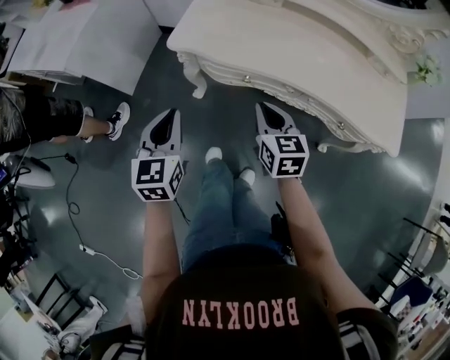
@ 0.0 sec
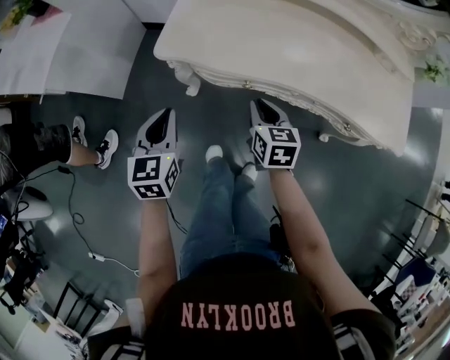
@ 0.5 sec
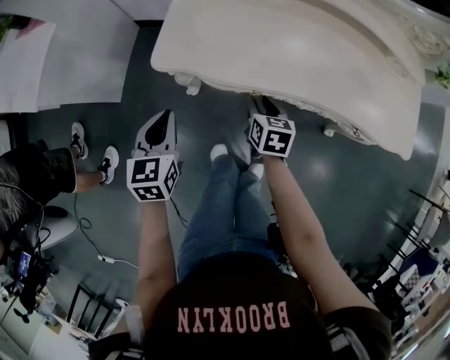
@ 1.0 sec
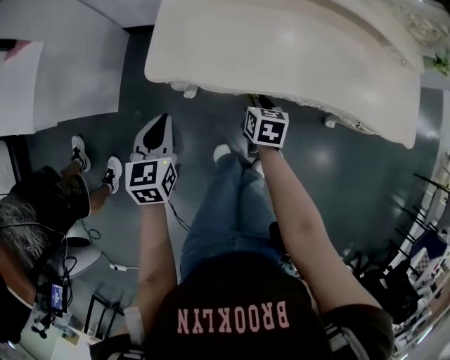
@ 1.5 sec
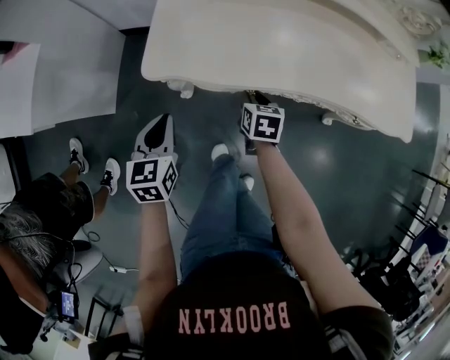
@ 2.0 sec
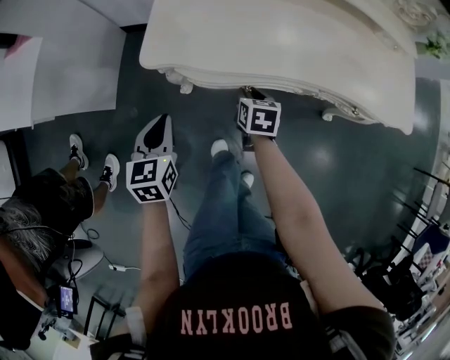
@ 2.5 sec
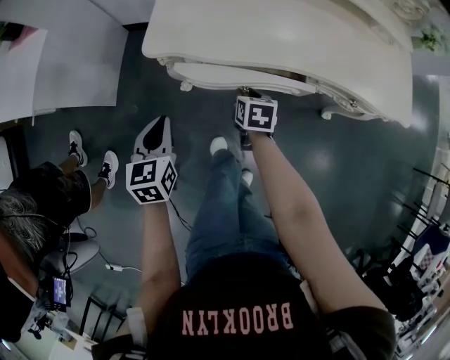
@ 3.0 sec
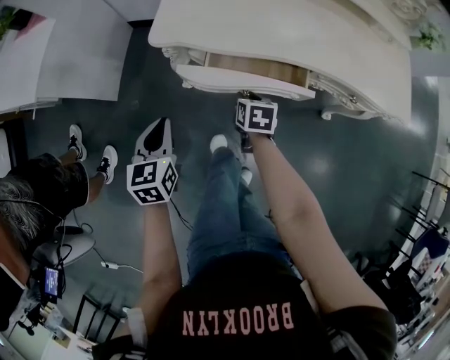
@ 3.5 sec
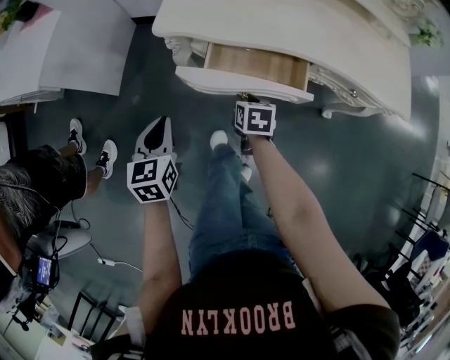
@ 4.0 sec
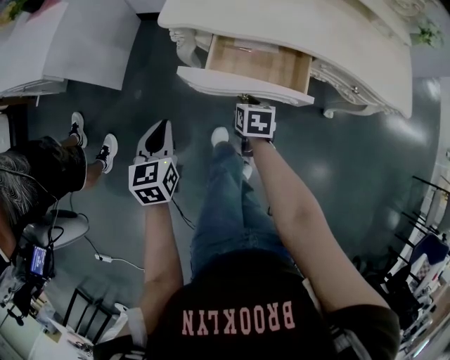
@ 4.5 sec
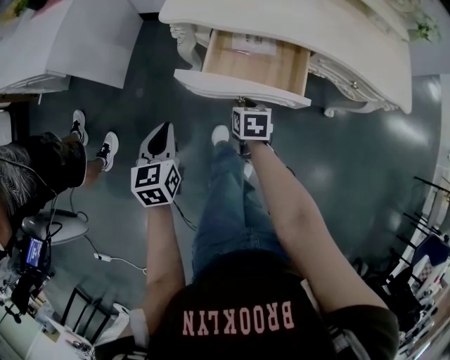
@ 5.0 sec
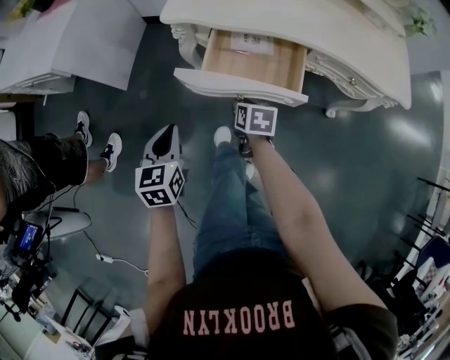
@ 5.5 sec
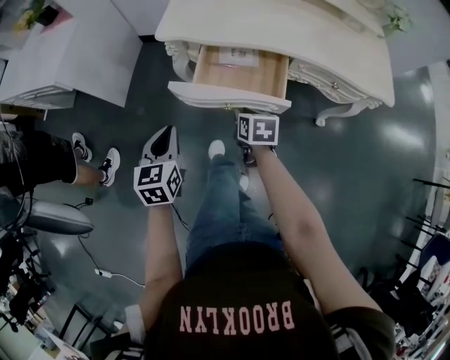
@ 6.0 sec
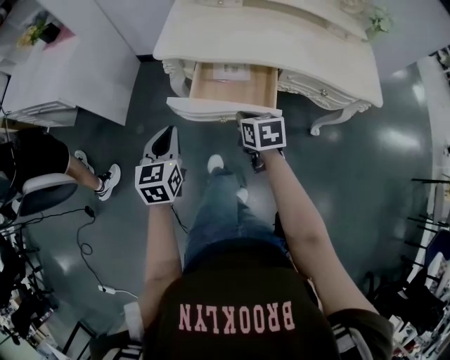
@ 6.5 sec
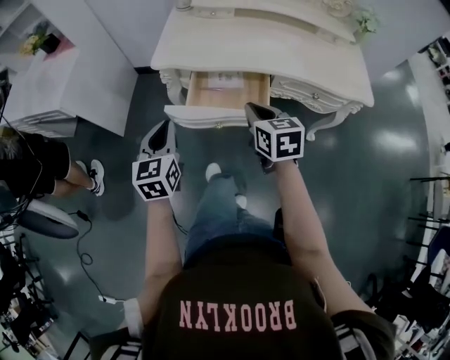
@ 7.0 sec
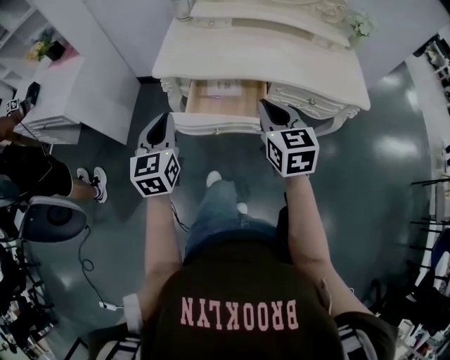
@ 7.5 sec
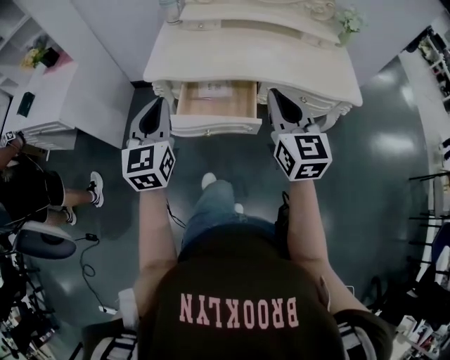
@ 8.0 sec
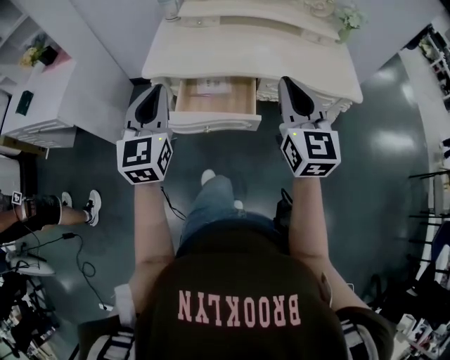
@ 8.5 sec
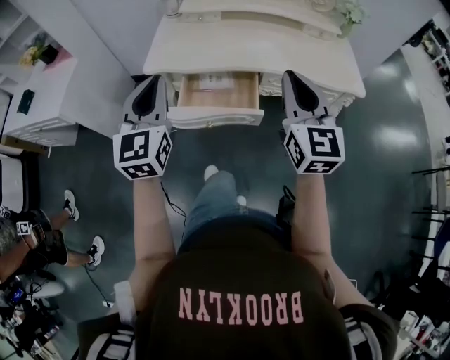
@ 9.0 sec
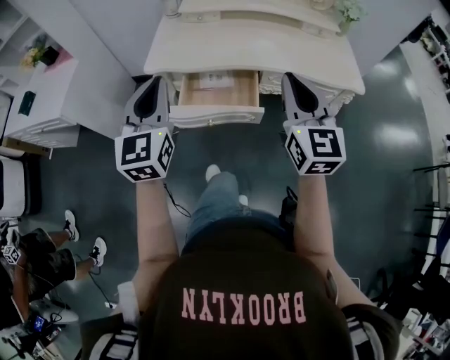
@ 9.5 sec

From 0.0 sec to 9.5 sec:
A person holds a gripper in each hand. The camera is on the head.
From 0.0 sec to 2.0 sec: The right gripper heads downward and forward, covering roughly 20 cm, turns by roughly 30 degrees, and opens its fingers; the left gripper goes some 20 cm forward and downward.
From 2.0 sec to 4.0 sec: Both grippers move backward, approximately 15 cm.
From 4.0 sec to 5.5 sec: Both grippers travel together backward, some 10 cm.
From 5.5 sec to 7.5 sec: The right gripper is displaced upward by some 30 cm, angles its fingers upward, by some 30 degrees, and closes its fingers. The left gripper is displaced upward by some 15 cm, and changes its angle by about 20 degrees.
From 7.5 sec to 9.5 sec: The right gripper travels upward and to the right by approximately 10 cm, and changes its angle by about 20 degrees. Meanwhile the left gripper heads upward, covering some 10 cm.

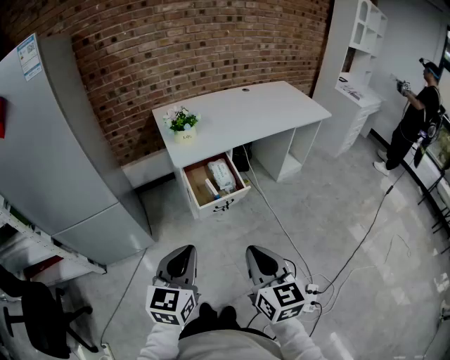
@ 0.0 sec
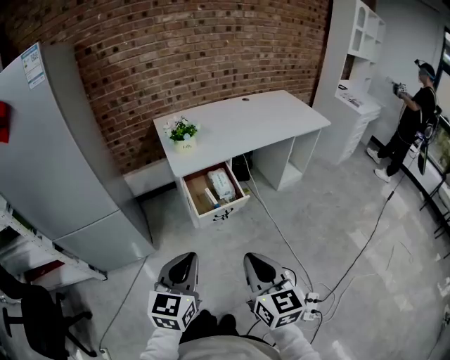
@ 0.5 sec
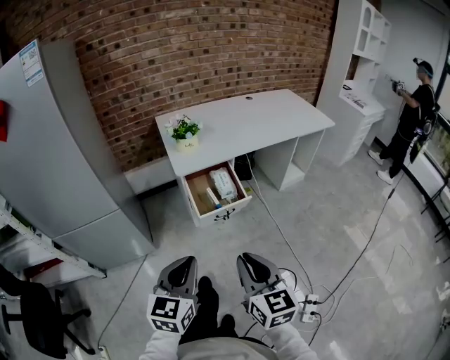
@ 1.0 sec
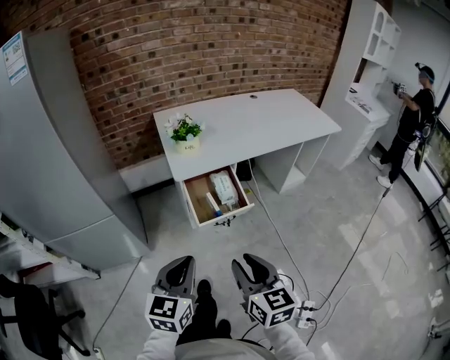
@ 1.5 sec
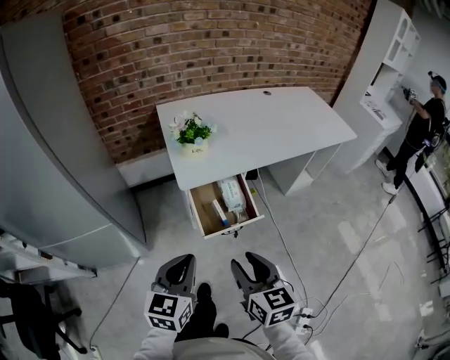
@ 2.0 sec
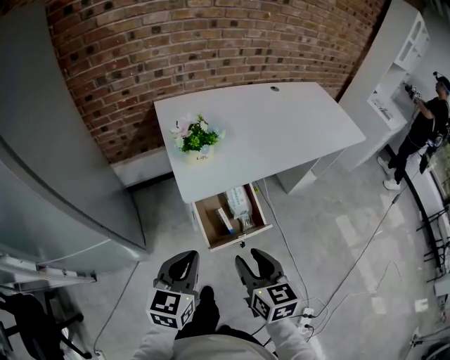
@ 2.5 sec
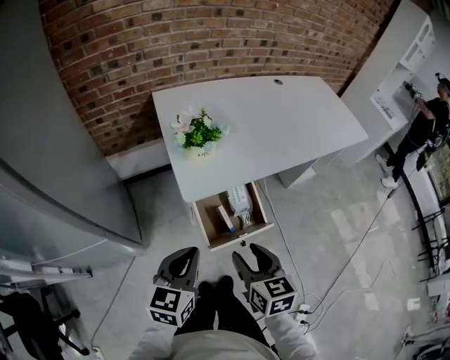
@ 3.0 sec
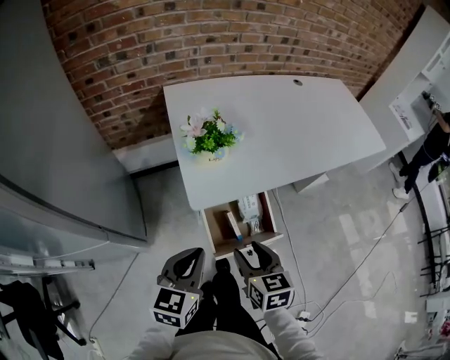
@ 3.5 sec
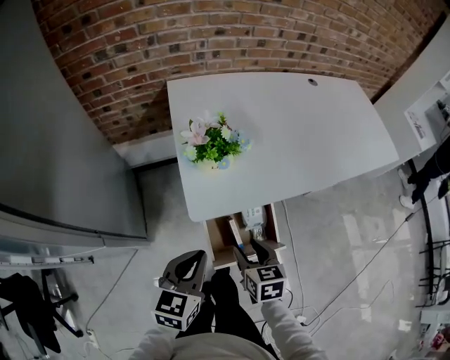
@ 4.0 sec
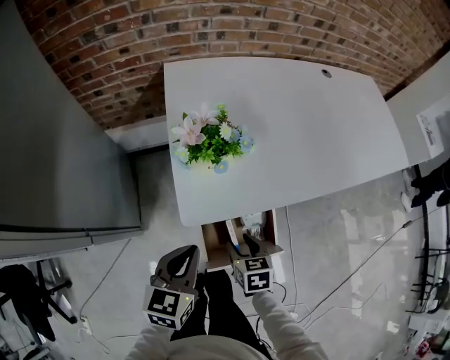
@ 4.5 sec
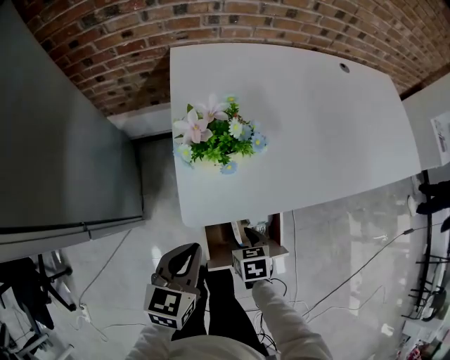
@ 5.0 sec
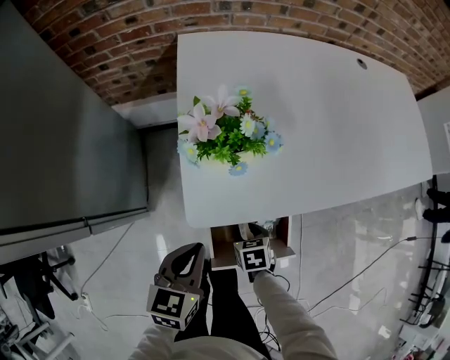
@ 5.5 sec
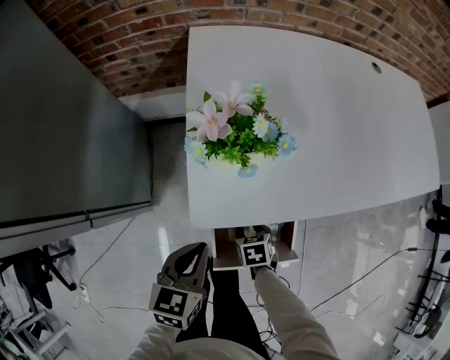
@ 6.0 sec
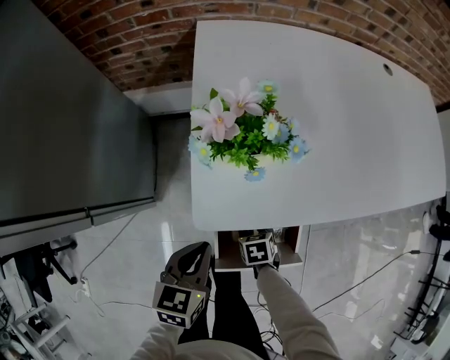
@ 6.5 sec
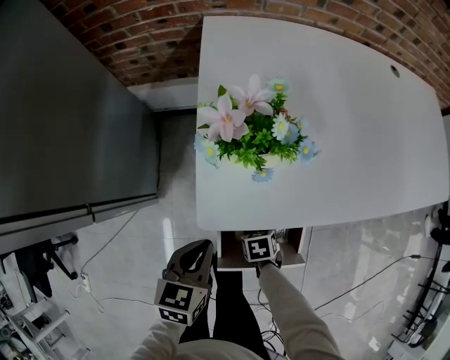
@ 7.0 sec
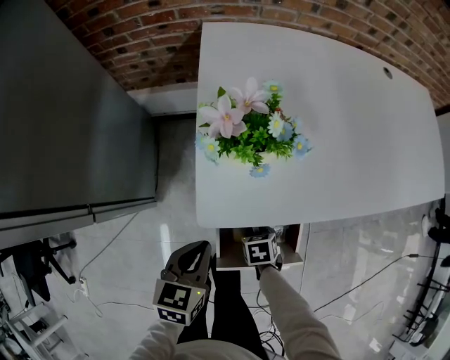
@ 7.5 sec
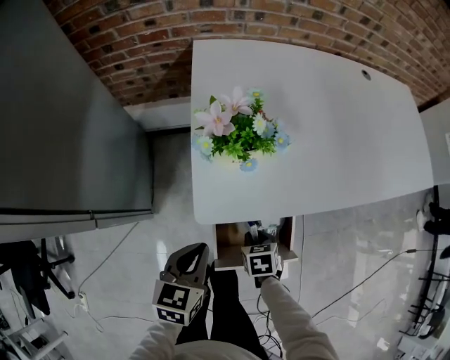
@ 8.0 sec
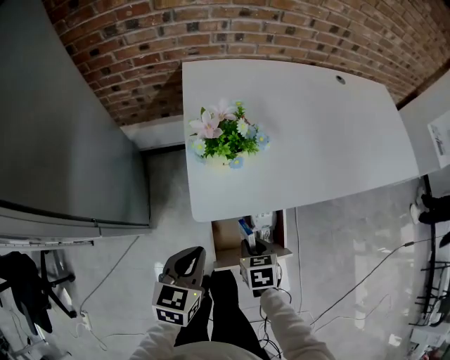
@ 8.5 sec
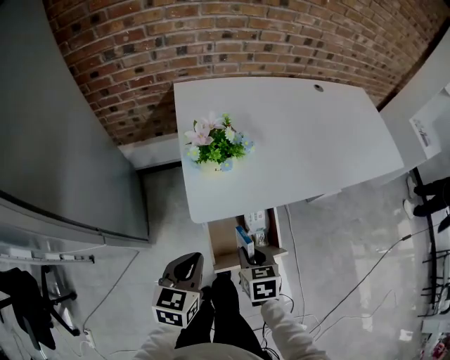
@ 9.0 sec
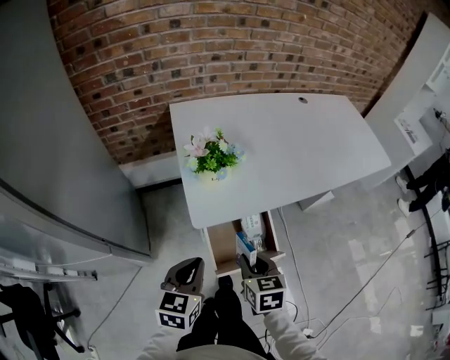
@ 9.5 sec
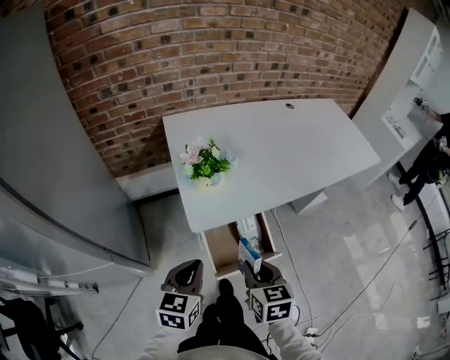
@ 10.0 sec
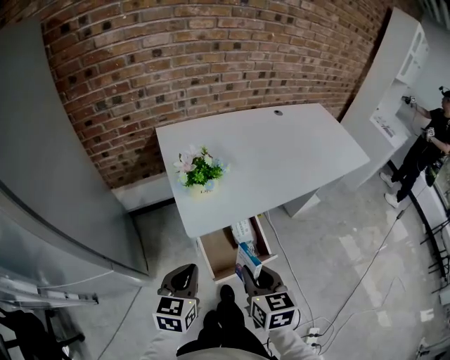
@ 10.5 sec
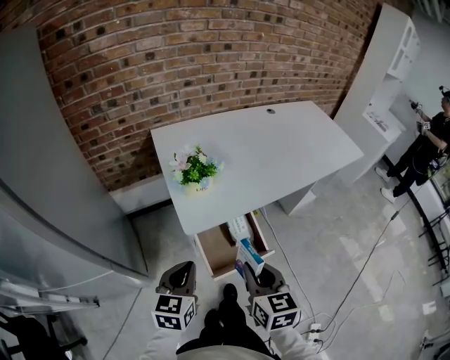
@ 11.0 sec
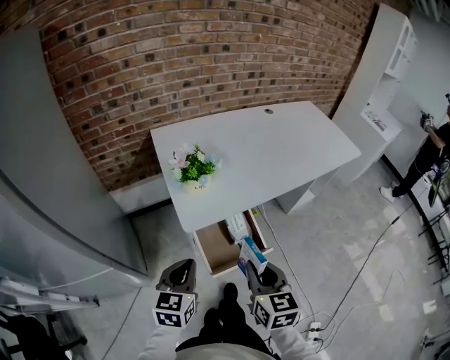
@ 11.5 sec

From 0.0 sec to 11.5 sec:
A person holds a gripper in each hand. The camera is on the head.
From 0.0 sec to 2.0 sec: The grippers both shift forward by about 20 cm. The right gripper opens.
From 2.0 sec to 4.0 sec: The right gripper goes some 30 cm forward and downward, and swivels about 20 degrees; the left gripper shifts approximately 20 cm forward.
From 4.0 sec to 6.0 sec: The right gripper travels downward by roughly 20 cm, and swivels about 30 degrees. Meanwhile the left gripper moves downward and forward, some 10 cm.
From 6.0 sec to 7.5 sec: The right gripper closes its fingers.
From 7.5 sec to 9.5 sec: The right gripper heads upward, covering approximately 25 cm, and tips its fingers upward by roughly 30 degrees. The left gripper heads upward and backward, covering about 15 cm.
From 9.5 sec to 11.5 sec: The right gripper travels upward and backward by roughly 15 cm; the left gripper shifts by some 5 cm.

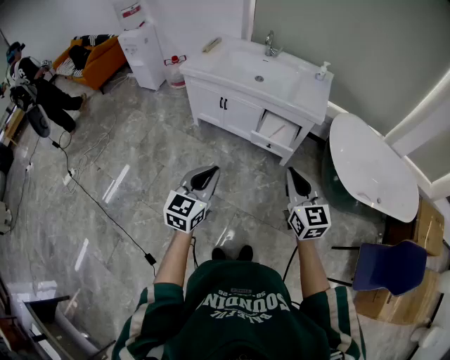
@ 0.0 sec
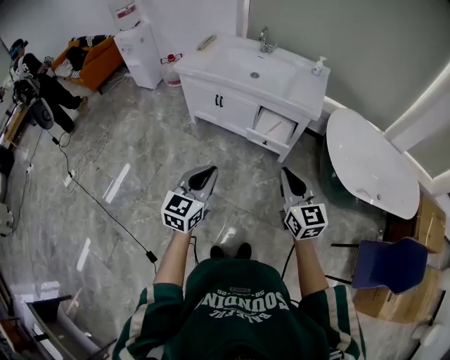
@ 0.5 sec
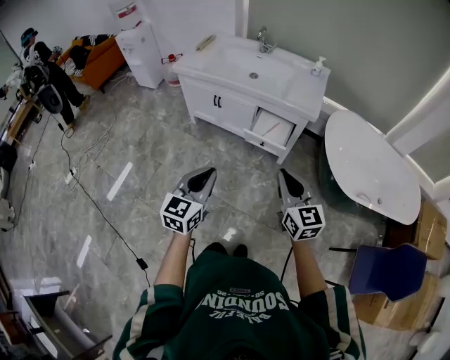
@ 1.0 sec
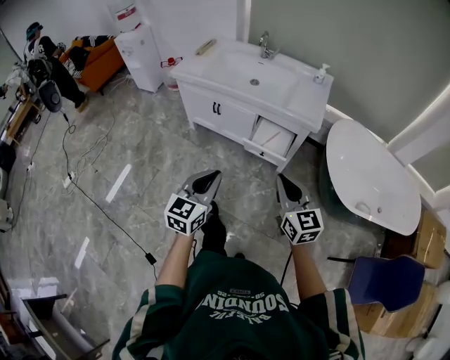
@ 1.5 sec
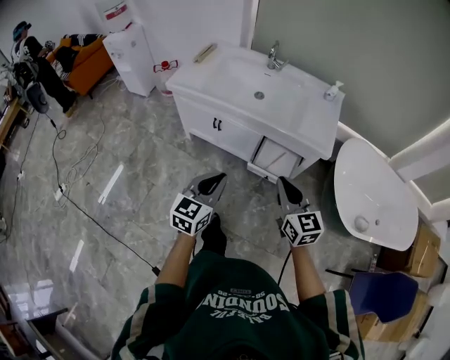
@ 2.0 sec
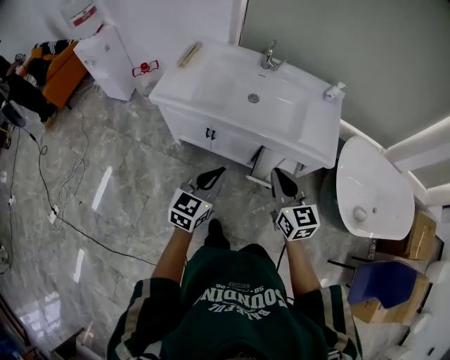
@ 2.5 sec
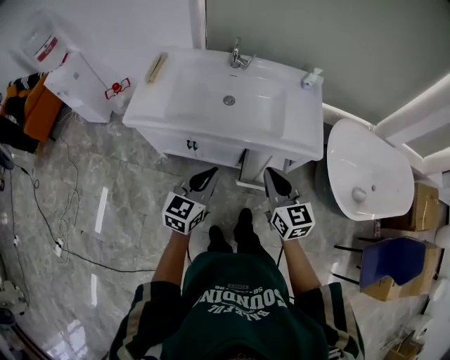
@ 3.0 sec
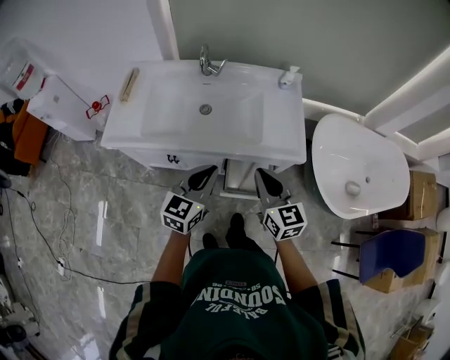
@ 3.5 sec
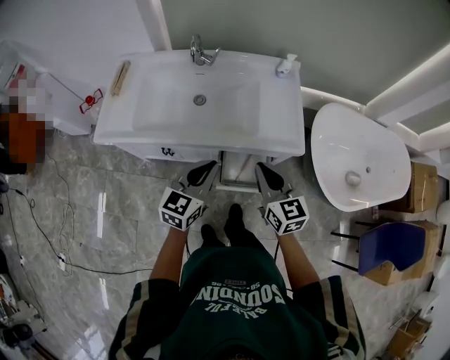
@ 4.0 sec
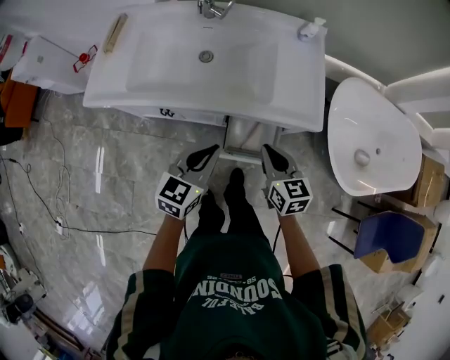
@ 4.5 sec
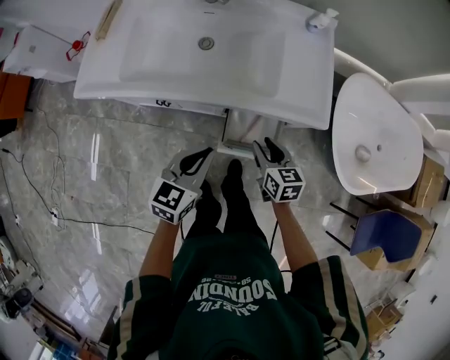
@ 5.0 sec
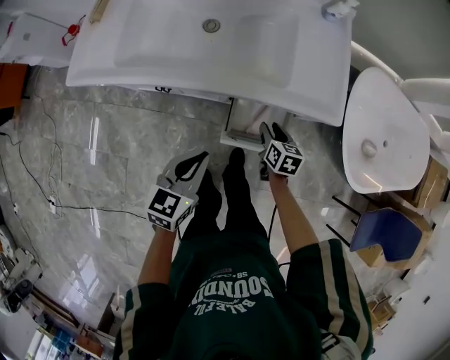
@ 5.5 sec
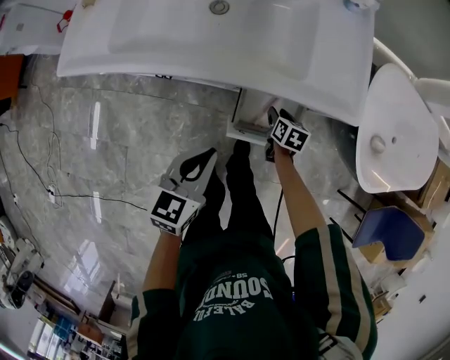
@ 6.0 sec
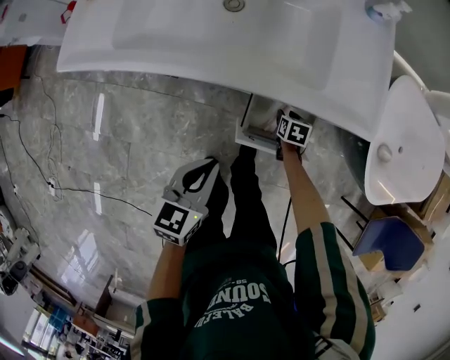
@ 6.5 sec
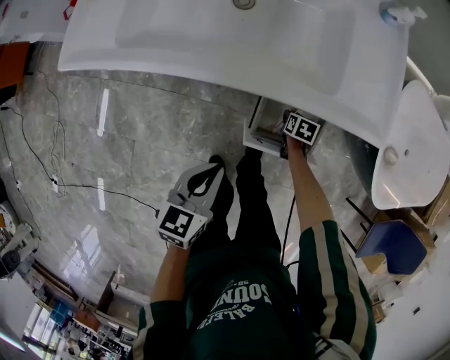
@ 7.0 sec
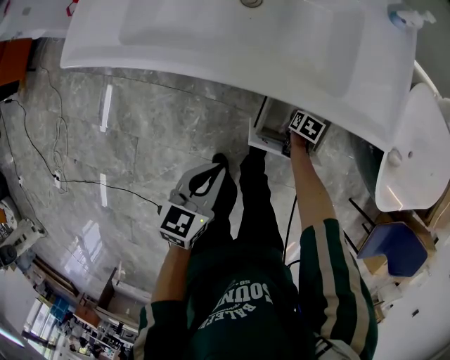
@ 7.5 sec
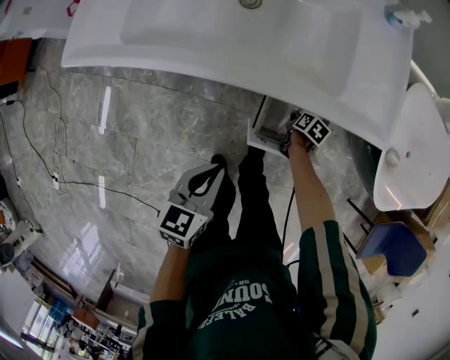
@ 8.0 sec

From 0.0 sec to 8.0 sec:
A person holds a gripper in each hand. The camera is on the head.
From 0.0 sec to 2.0 sec: The two grippers go about 25 cm forward.
From 2.0 sec to 4.0 sec: Both grippers move forward, approximately 25 cm. The left gripper changes its angle by roughly 20 degrees.
From 4.0 sec to 6.0 sec: The left gripper goes roughly 20 cm downward. The right gripper is displaced downward by some 40 cm, tips its fingers downward by approximately 40 degrees, and opens.
From 6.0 sec to 8.0 sec: The right gripper heads downward, covering approximately 10 cm, rotates roughly 20 degrees, and closes its fingers; the left gripper moves downward, roughly 5 cm.
